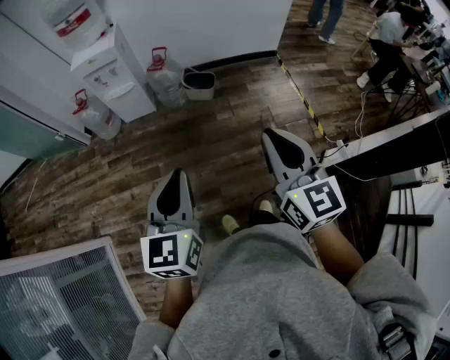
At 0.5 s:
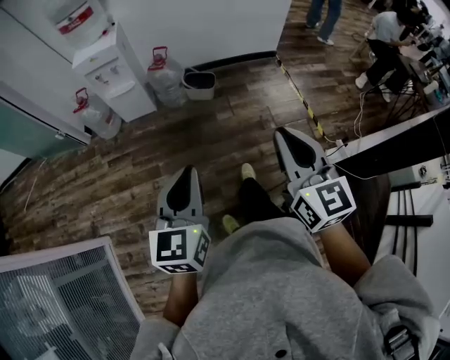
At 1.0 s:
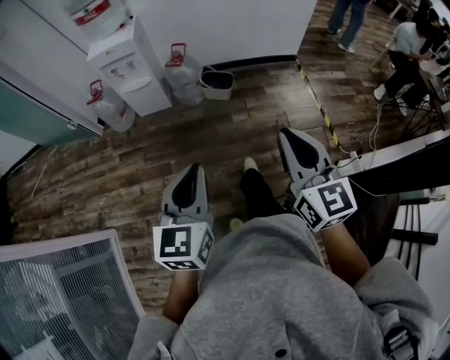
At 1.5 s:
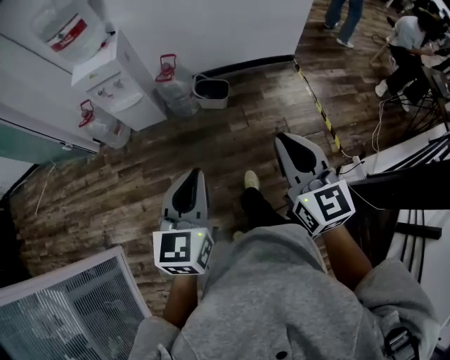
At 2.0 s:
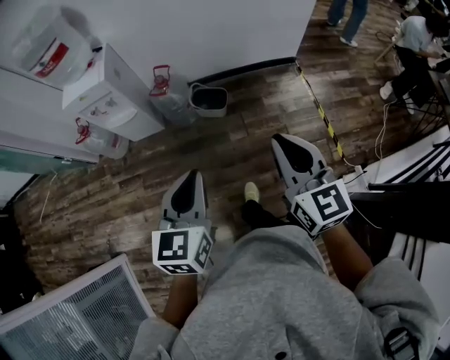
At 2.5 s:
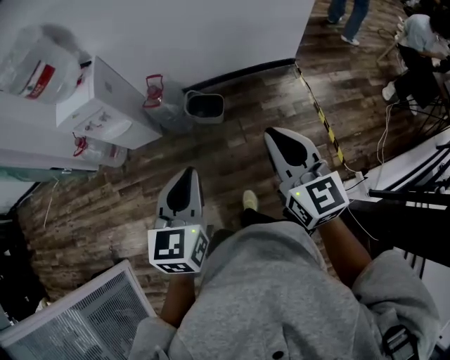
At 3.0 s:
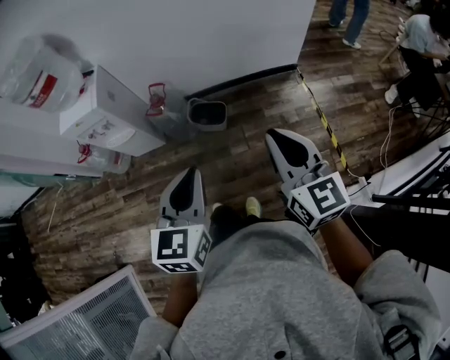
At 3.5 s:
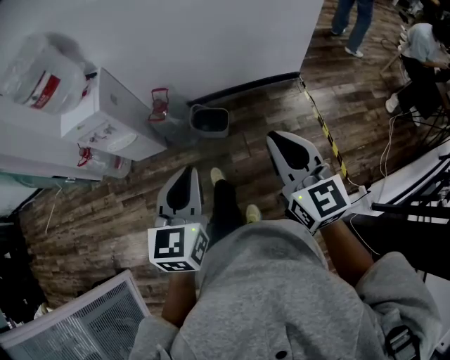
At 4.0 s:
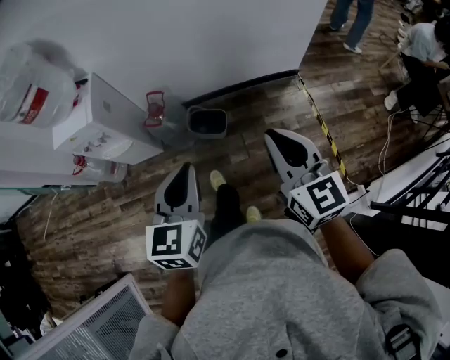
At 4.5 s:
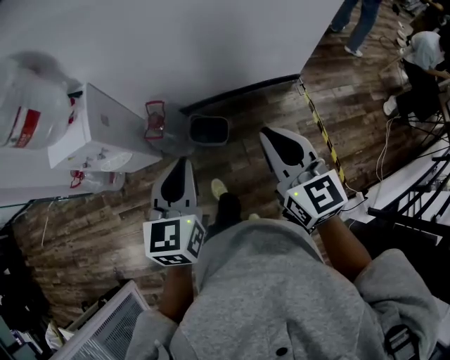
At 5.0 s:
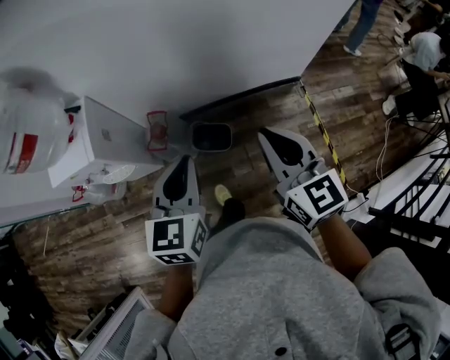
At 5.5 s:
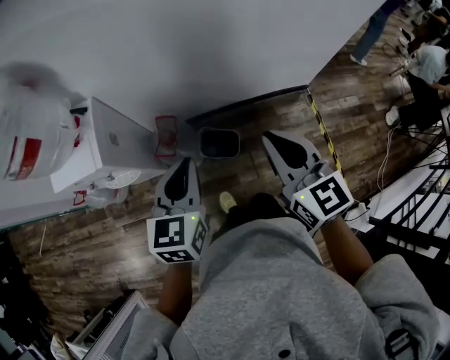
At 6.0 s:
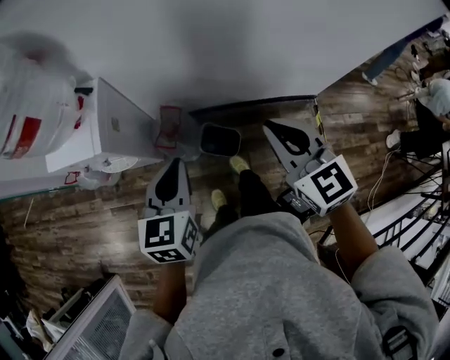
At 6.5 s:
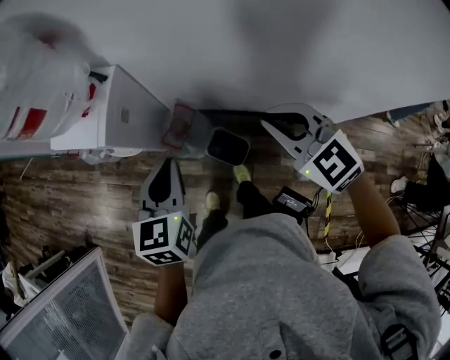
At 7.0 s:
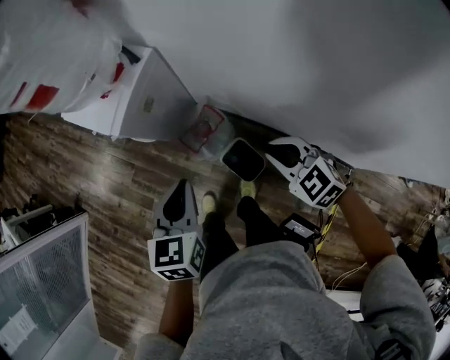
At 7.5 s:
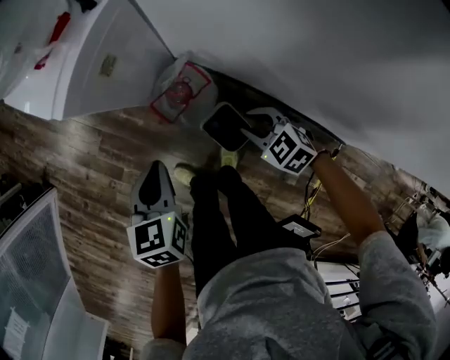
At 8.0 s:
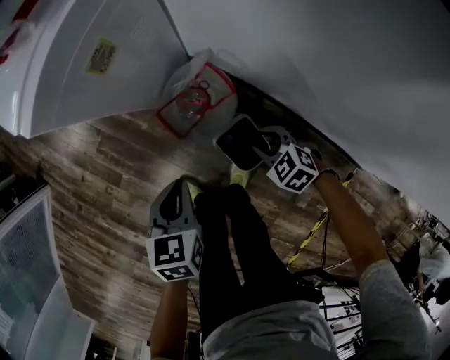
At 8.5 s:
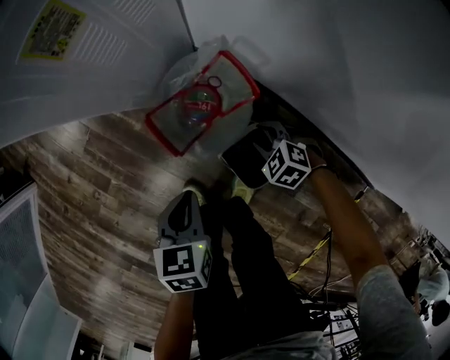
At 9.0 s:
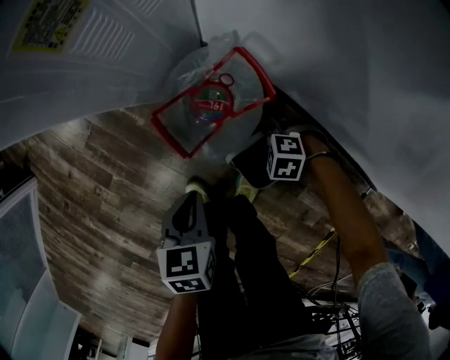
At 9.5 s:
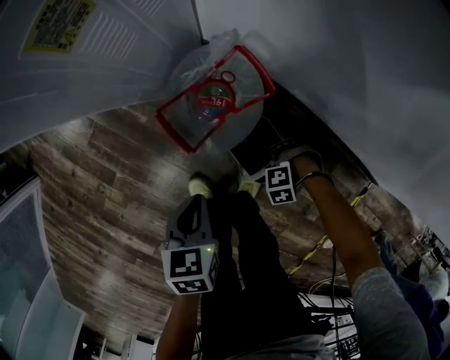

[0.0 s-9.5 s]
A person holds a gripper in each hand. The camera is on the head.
0.0 to 2.0 s: Both grippers move forward, roughly 25 cm.
2.0 to 4.0 s: The grippers both shift forward by approximately 20 cm.
4.0 to 5.5 s: The right gripper heads forward and to the left, covering roughly 25 cm. The left gripper heads forward, covering some 25 cm.
5.5 to 7.5 s: The left gripper shifts about 25 cm downward, and rotates approximately 50 degrees, while the right gripper goes roughly 40 cm downward, and points its fingers approximately 40 degrees further downward.
7.5 to 9.5 s: Both grippers move downward, approximately 35 cm. The right gripper tilts its fingers some 30 degrees downward.

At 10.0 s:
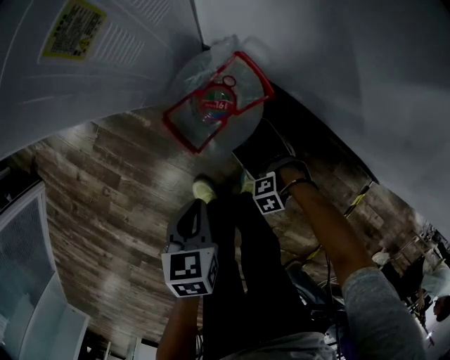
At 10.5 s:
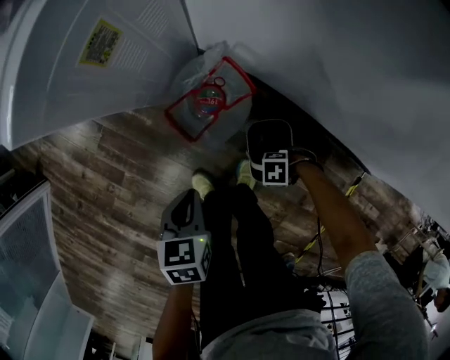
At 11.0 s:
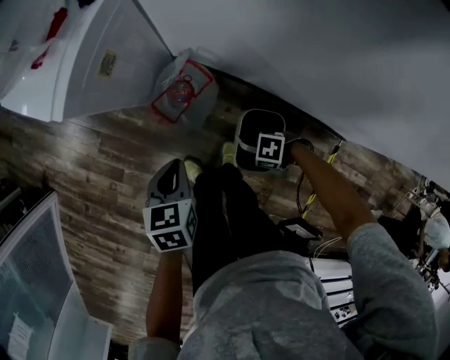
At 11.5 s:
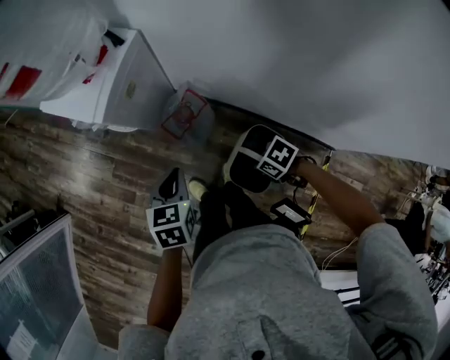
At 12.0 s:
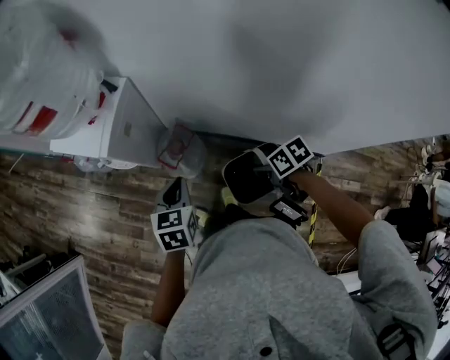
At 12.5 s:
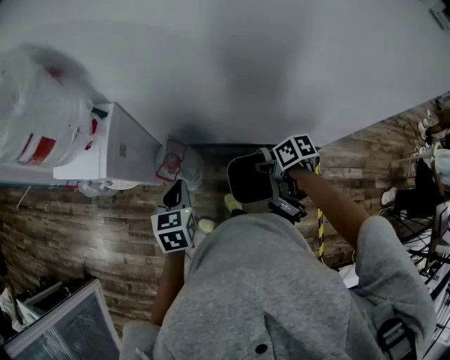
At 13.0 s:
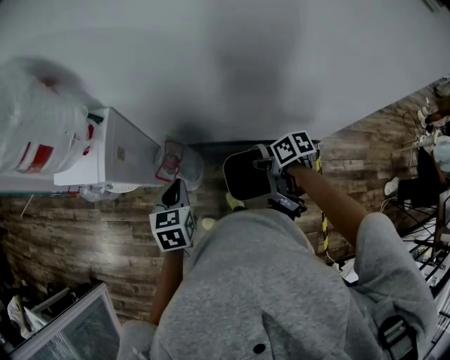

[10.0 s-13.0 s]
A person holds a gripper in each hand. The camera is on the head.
10.0 to 11.5 s: Both grippers move upward, about 35 cm. The right gripper twists roughly 70 degrees clockwise, seen from behind.
11.5 to 13.0 s: The right gripper moves upward, some 15 cm, and turns by about 60 degrees. Meanwhile the left gripper shifts some 10 cm upward, and swivels roughly 20 degrees.

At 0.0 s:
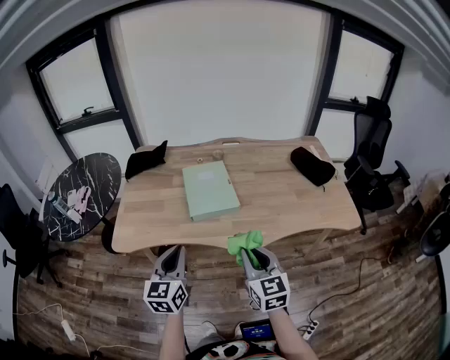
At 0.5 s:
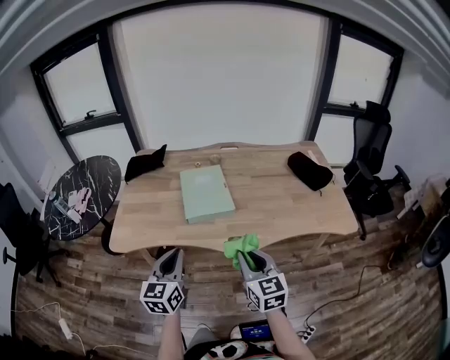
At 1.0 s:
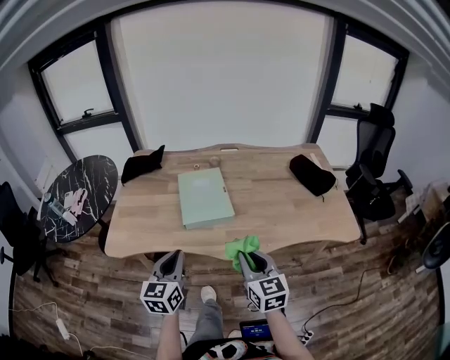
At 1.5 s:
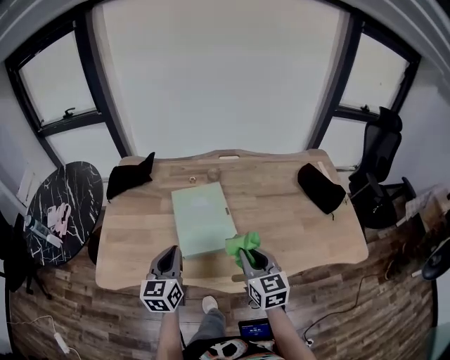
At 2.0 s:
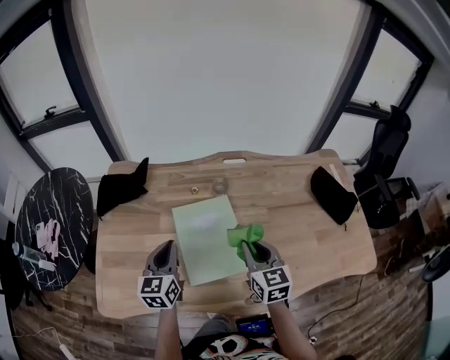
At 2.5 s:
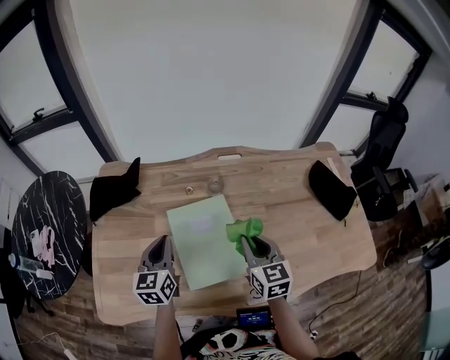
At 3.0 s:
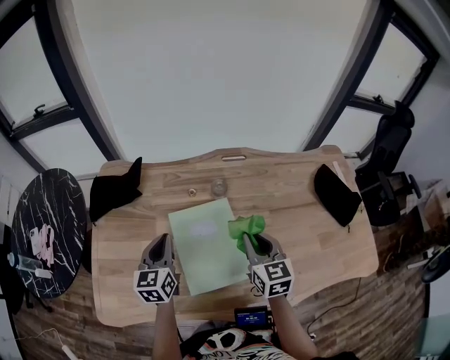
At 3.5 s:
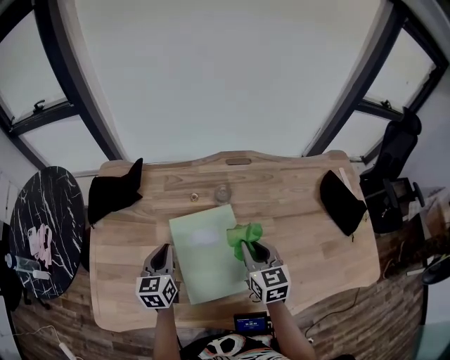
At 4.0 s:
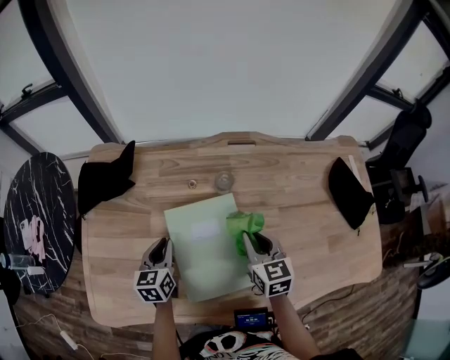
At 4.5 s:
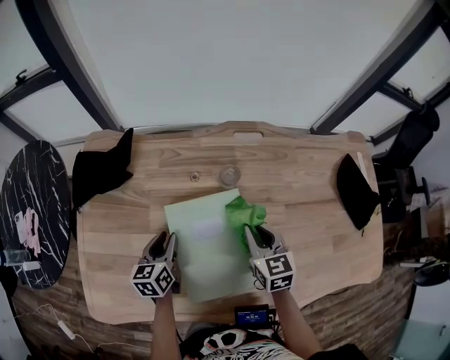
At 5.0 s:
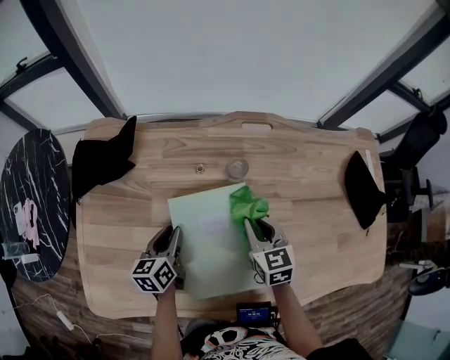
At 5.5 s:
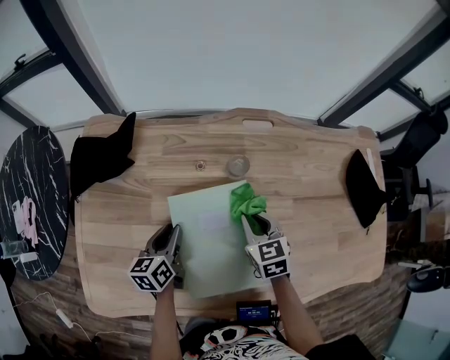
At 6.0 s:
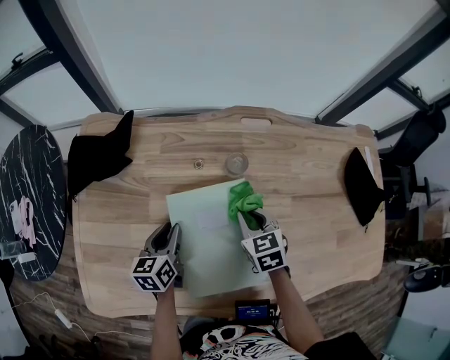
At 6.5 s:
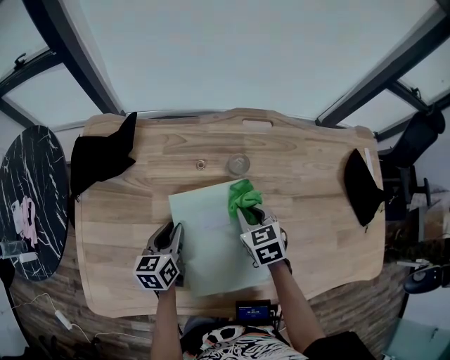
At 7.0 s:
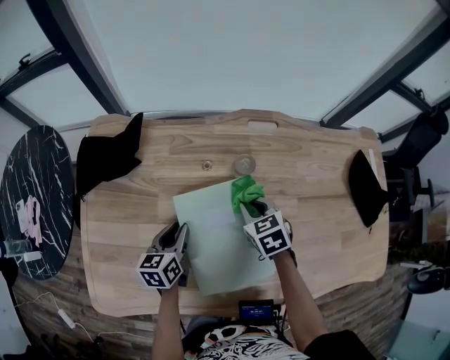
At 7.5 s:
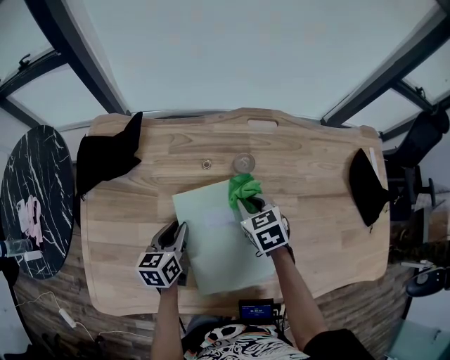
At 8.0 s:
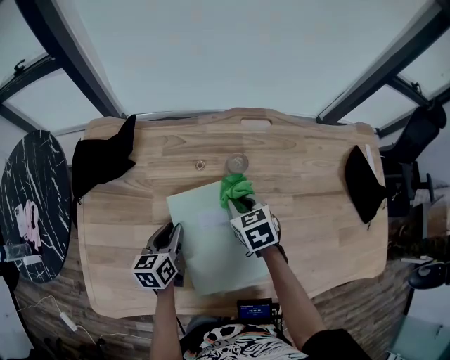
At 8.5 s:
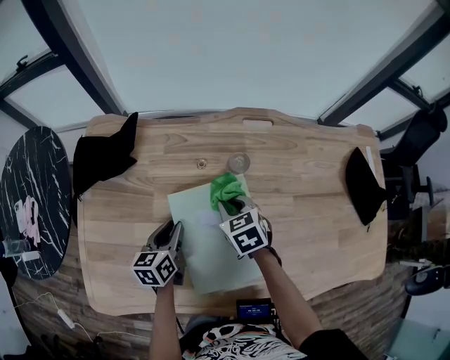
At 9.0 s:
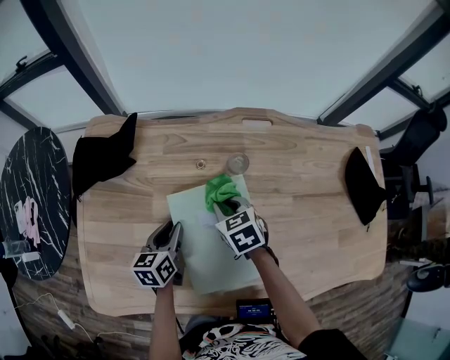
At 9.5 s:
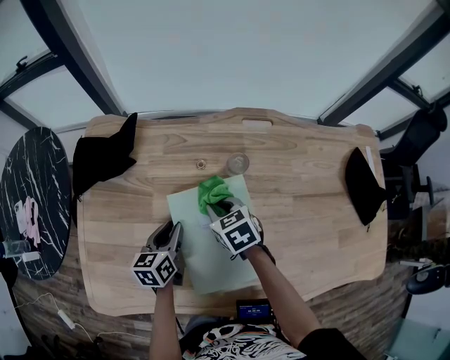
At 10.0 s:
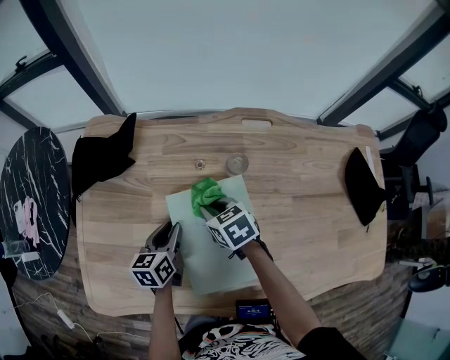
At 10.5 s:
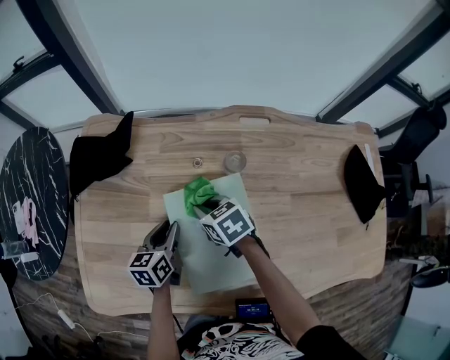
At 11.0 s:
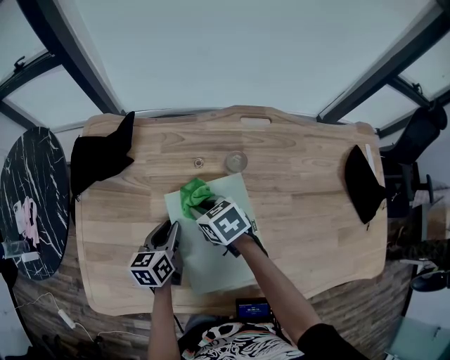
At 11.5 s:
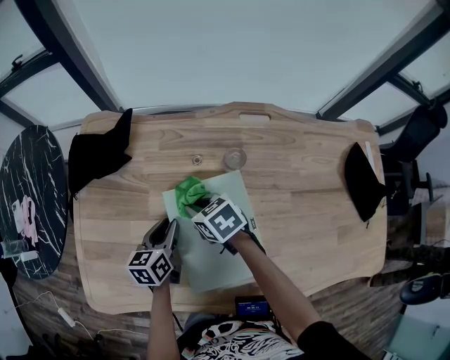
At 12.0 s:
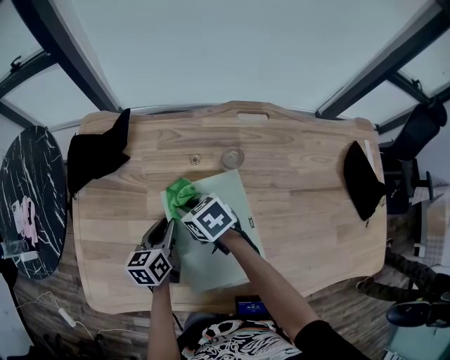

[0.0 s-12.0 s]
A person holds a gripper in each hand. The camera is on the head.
0.0 to 2.0 s: Both grippers move forward, some 35 cm.
2.0 to 4.0 s: The right gripper shifts roughly 10 cm forward and downward, while the left gripper is displaced downward and forward by about 15 cm.
4.0 to 6.0 s: The right gripper moves downward, roughly 5 cm.
6.0 to 8.0 s: The grippers move only a little.
8.0 to 10.0 s: The right gripper is displaced to the left by approximately 10 cm.
10.0 to 12.0 s: The right gripper travels to the left by roughly 5 cm.

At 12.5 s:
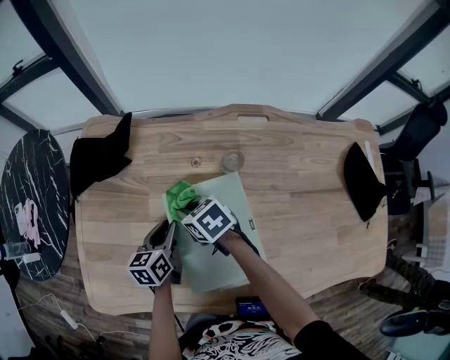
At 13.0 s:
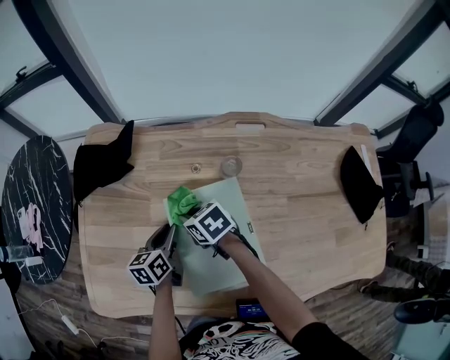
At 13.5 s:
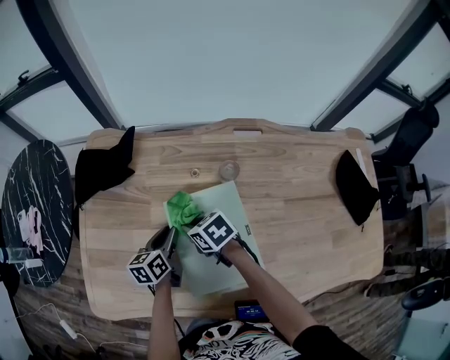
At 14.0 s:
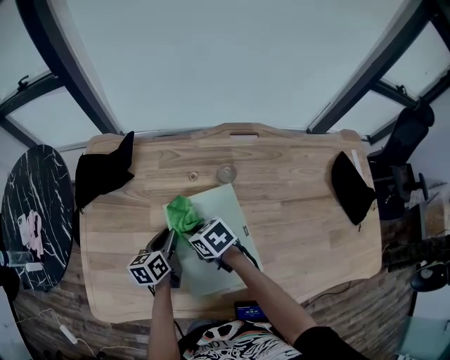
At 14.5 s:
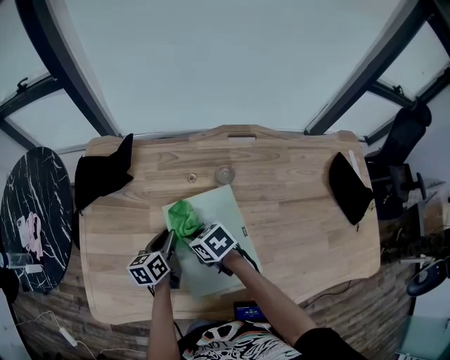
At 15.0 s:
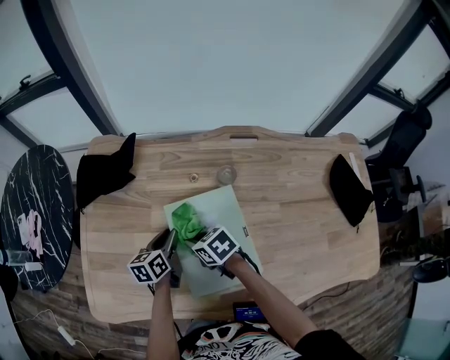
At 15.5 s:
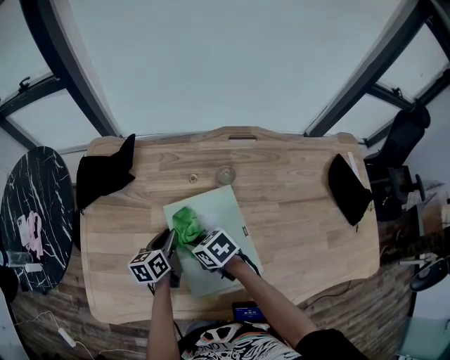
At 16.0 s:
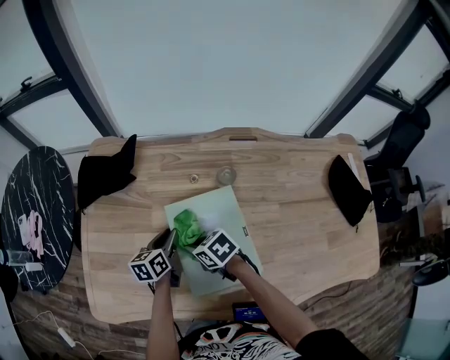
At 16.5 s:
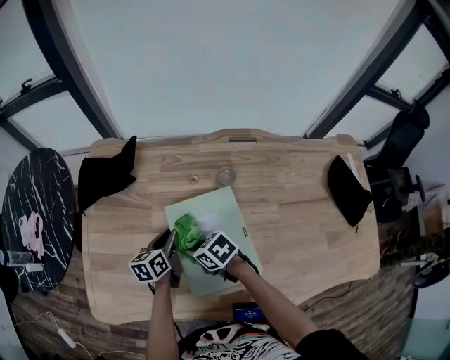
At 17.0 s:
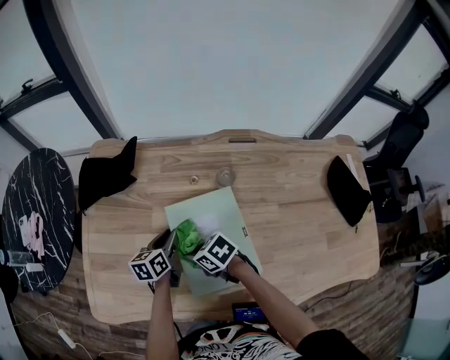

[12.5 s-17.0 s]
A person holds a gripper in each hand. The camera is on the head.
12.5 to 14.5 s: The right gripper is displaced backward by about 5 cm.
14.5 to 17.0 s: The right gripper shifts by about 5 cm.
